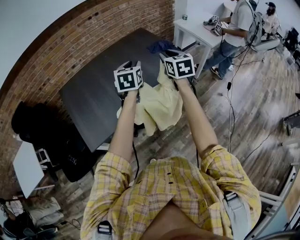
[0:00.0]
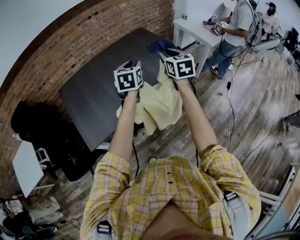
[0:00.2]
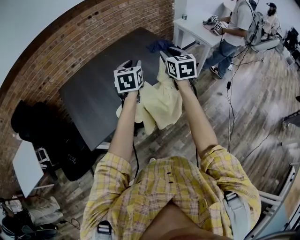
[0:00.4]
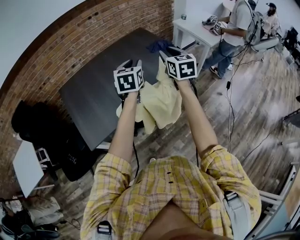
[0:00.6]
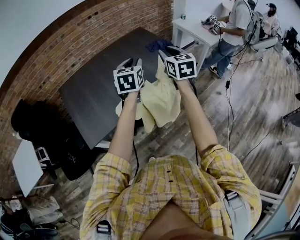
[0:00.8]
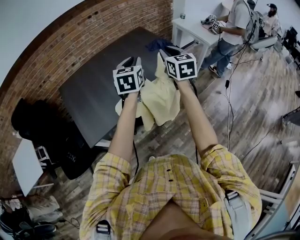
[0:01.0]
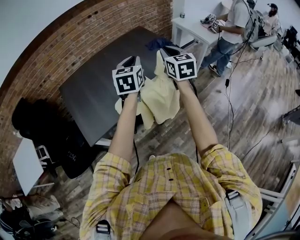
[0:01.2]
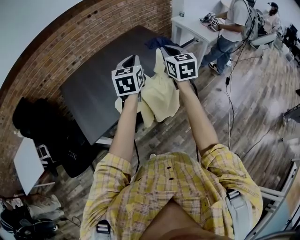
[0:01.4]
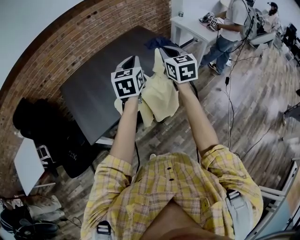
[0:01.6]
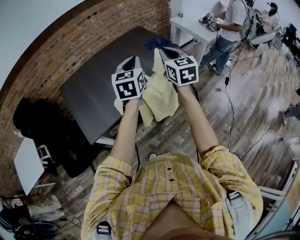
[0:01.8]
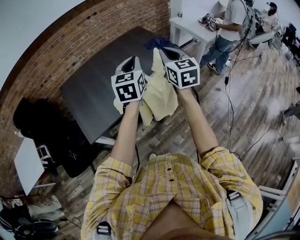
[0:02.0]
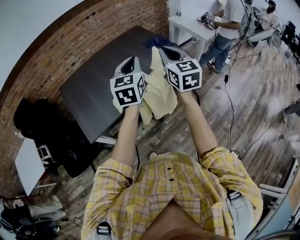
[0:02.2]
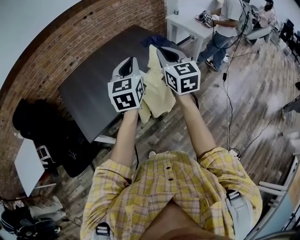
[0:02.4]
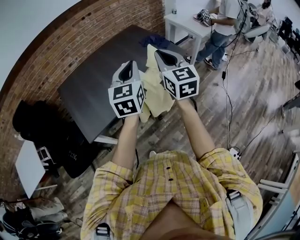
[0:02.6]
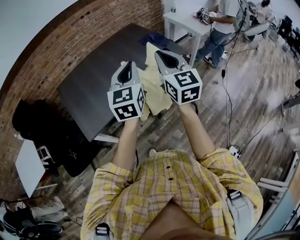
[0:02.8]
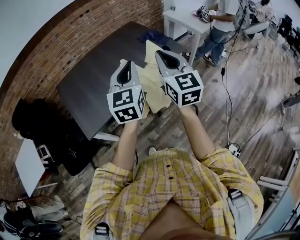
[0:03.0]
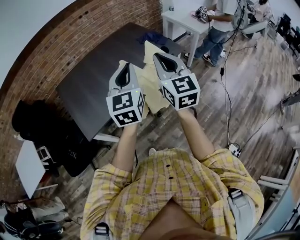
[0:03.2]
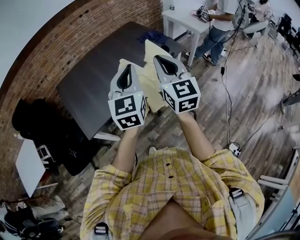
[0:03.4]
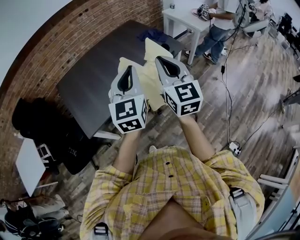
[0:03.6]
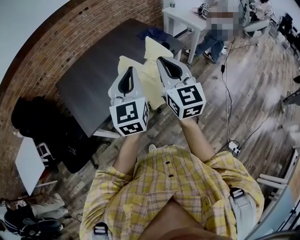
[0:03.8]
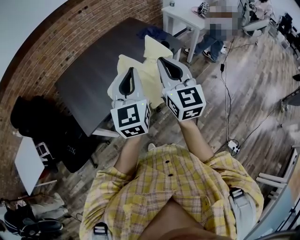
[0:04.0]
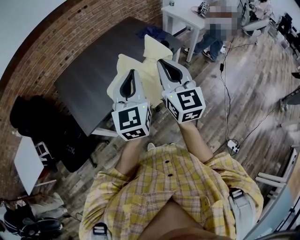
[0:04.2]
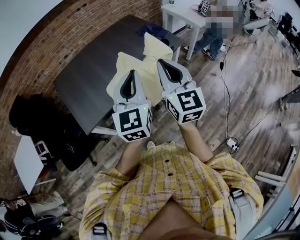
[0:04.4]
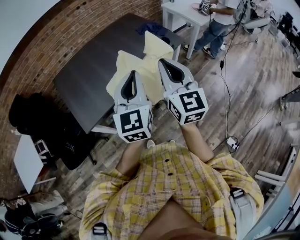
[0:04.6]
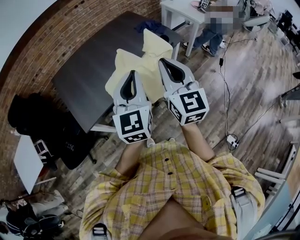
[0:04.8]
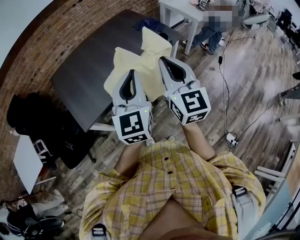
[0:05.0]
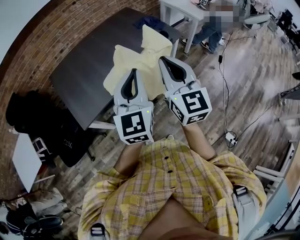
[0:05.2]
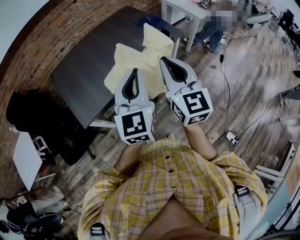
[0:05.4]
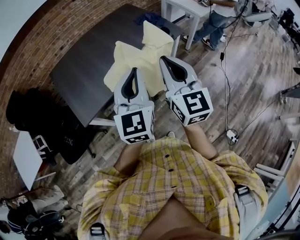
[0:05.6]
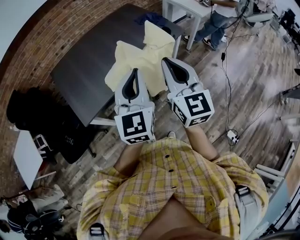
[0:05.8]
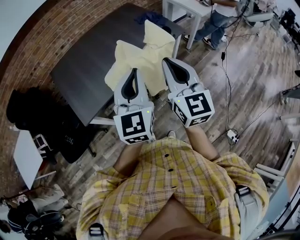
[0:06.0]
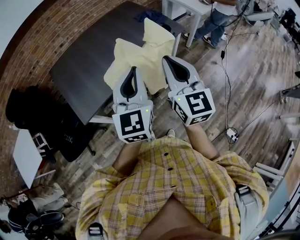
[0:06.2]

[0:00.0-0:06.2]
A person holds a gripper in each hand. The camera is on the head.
0.0 to 1.6 s: The left gripper travels backward and upward by approximately 10 cm, and closes its fingers; the right gripper moves backward, approximately 10 cm, and closes its fingers.
1.6 to 3.2 s: The two grippers go roughly 15 cm backward.
3.2 to 4.6 s: The grippers both shift backward by roughly 5 cm.
4.6 to 6.2 s: There are only small adjustments of the grippers.

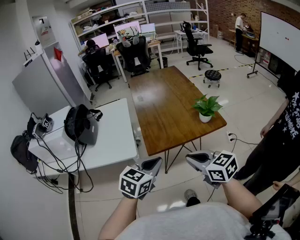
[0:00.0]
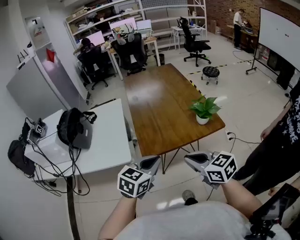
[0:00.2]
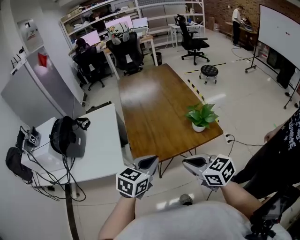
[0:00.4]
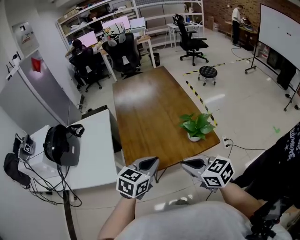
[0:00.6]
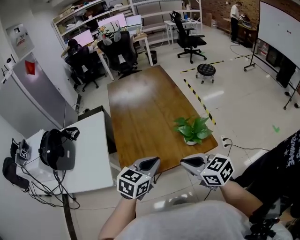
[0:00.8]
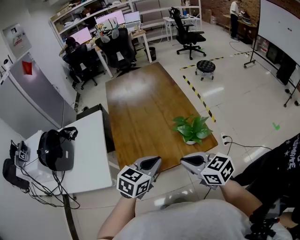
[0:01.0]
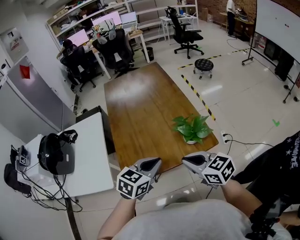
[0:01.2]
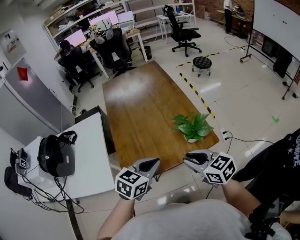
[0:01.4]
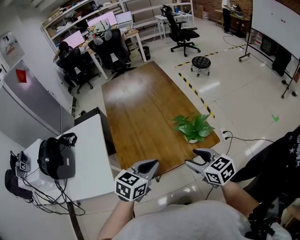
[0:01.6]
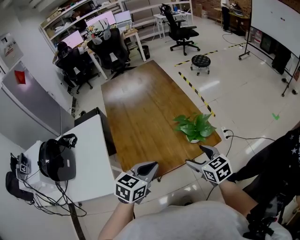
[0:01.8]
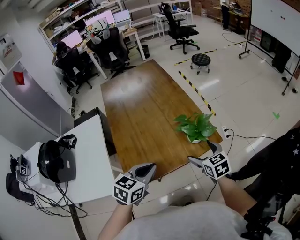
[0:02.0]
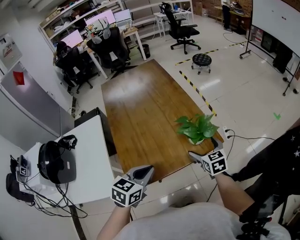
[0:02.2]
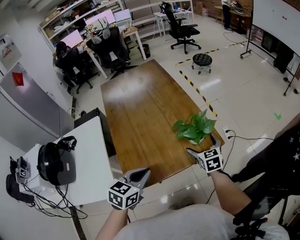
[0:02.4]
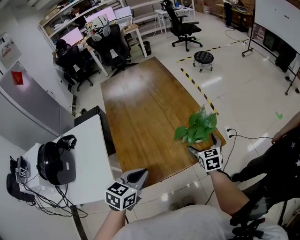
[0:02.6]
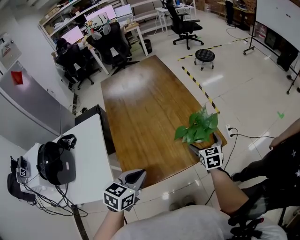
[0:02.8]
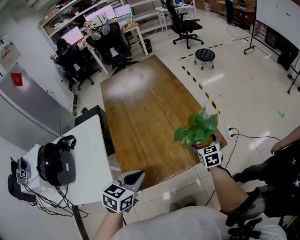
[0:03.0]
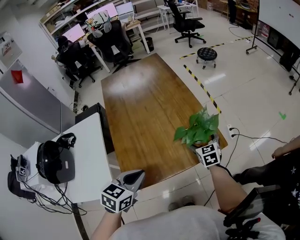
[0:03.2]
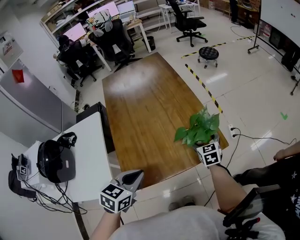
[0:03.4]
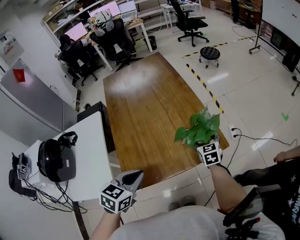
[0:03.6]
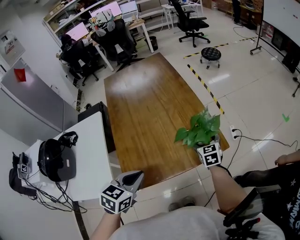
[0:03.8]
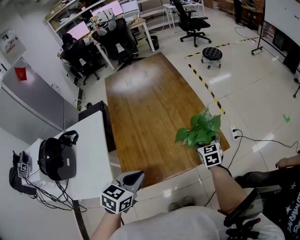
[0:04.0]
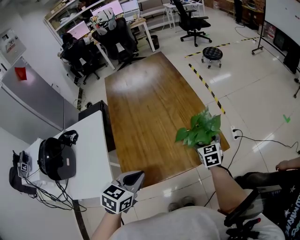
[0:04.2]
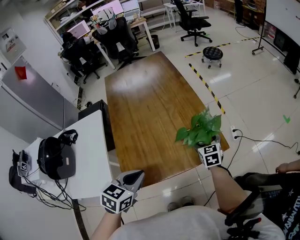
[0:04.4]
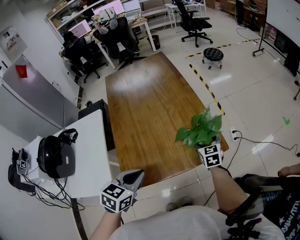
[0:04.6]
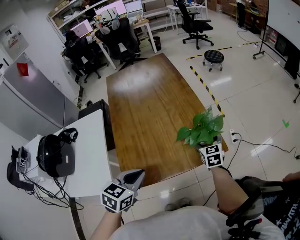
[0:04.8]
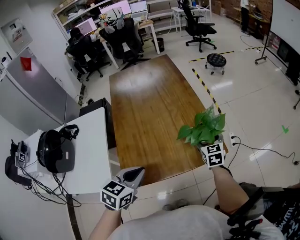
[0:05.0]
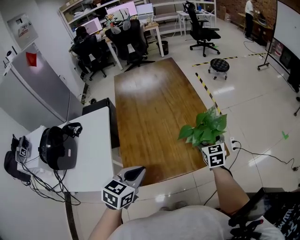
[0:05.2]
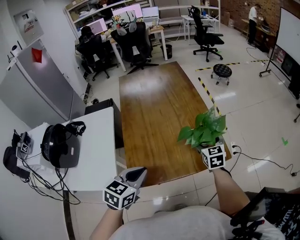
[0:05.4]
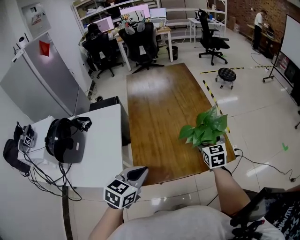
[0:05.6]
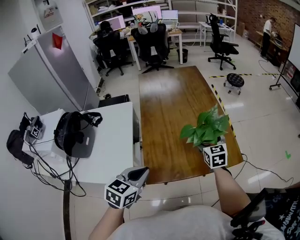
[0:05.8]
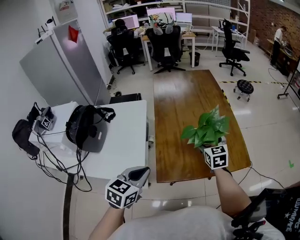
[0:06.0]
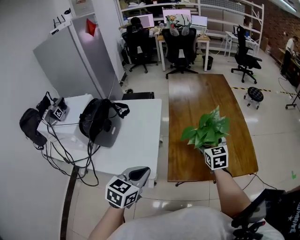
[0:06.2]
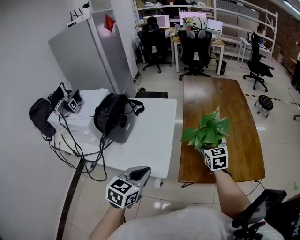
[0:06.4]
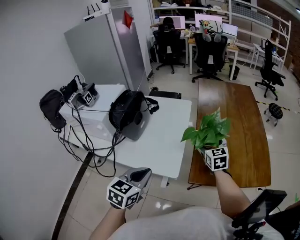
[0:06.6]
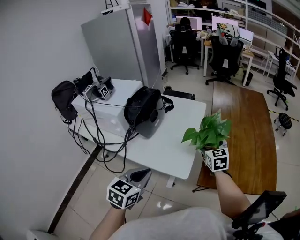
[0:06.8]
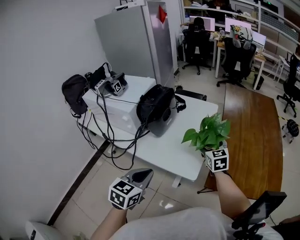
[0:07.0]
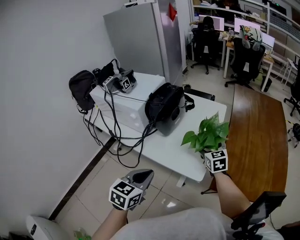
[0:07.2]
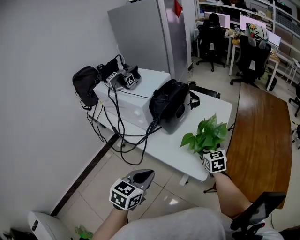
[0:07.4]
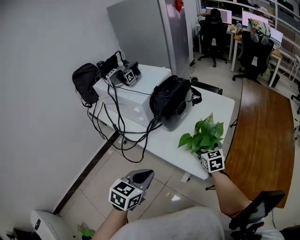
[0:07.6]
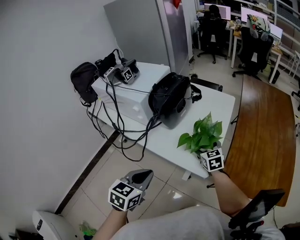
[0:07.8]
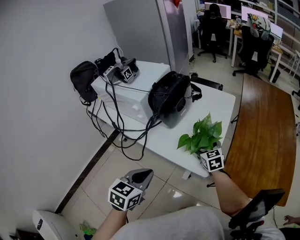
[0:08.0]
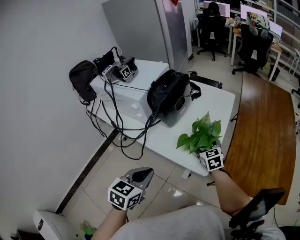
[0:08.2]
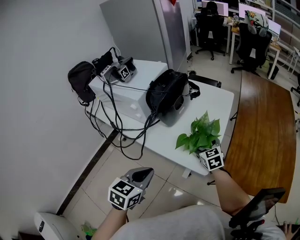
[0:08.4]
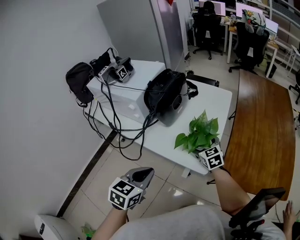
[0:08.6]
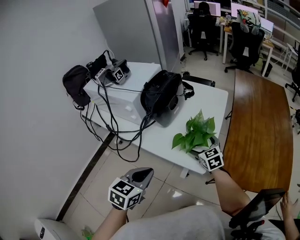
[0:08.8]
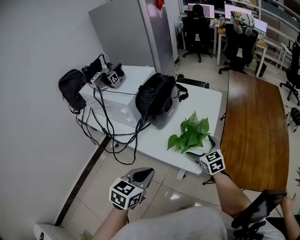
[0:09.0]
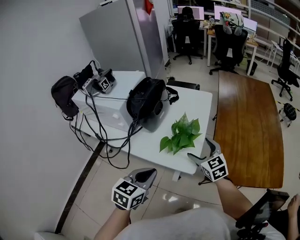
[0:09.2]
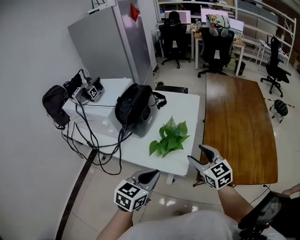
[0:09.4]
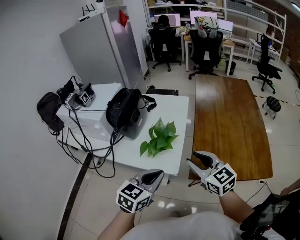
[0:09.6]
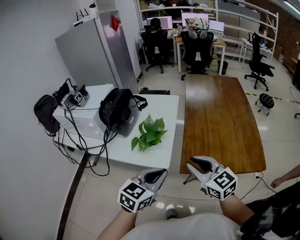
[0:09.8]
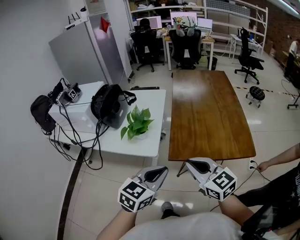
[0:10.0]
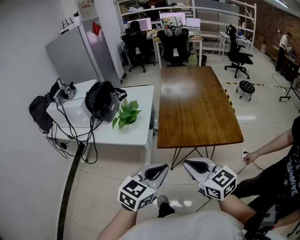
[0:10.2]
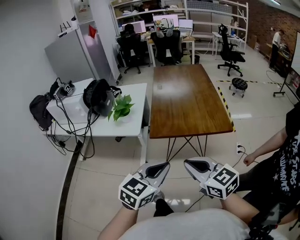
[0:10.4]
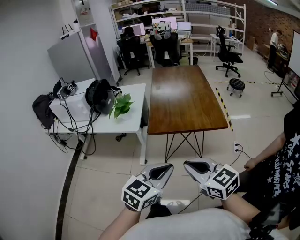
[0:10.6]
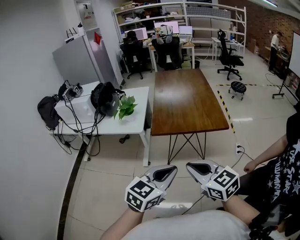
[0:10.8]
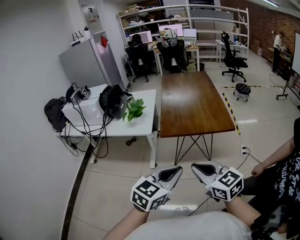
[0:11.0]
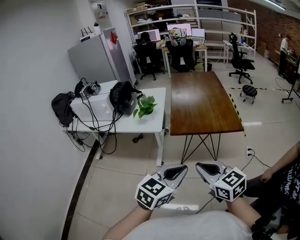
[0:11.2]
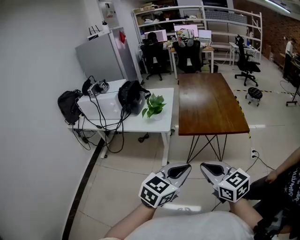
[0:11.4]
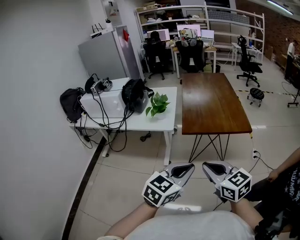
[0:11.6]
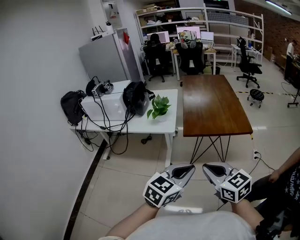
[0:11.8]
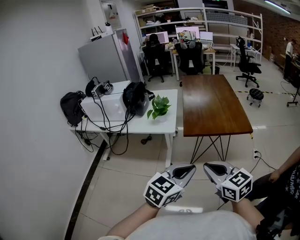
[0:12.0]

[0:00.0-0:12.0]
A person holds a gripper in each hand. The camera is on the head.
0.0 to 1.6 s: Both grippers move forward and to the right, some 25 cm. The right gripper opens up.
1.6 to 3.0 s: The right gripper is displaced forward and downward by about 20 cm, turns by approximately 30 degrees, and opens up; the left gripper travels to the left by approximately 5 cm.
3.0 to 4.4 s: The grippers make only small movements.
4.4 to 6.0 s: The right gripper shifts about 25 cm to the left and upward. The left gripper shifts approximately 15 cm to the left and backward.
6.0 to 7.6 s: The left gripper ends up some 30 cm from where it was, and turns by roughly 30 degrees. The right gripper ends up roughly 40 cm from where it was, and turns by some 40 degrees.
7.6 to 9.0 s: The grippers make only small movements.
9.0 to 10.4 s: The pair of grippers is taken backward and to the right, approximately 50 cm. The left gripper changes its angle by approximately 30 degrees, while the right gripper heads upward, covering approximately 20 cm, and closes.
10.4 to 12.0 s: Both grippers travel together backward and to the left, approximately 15 cm.

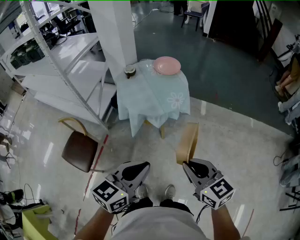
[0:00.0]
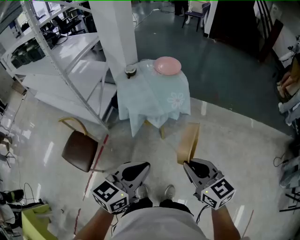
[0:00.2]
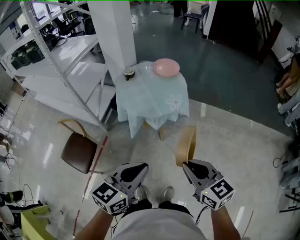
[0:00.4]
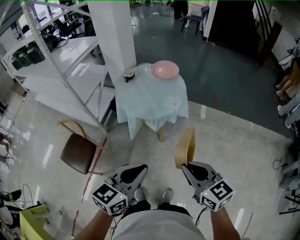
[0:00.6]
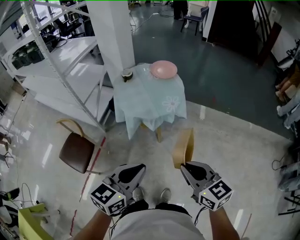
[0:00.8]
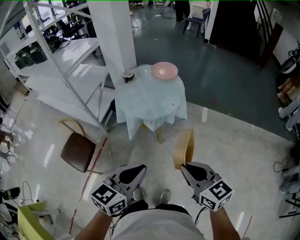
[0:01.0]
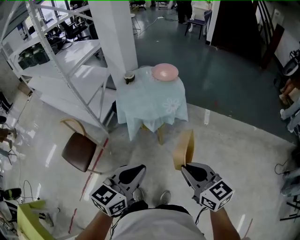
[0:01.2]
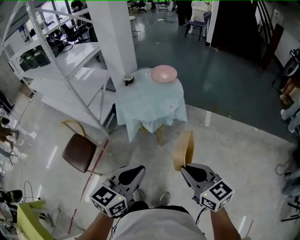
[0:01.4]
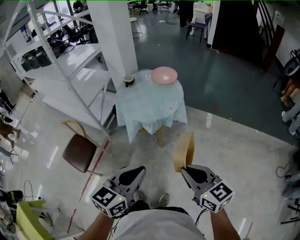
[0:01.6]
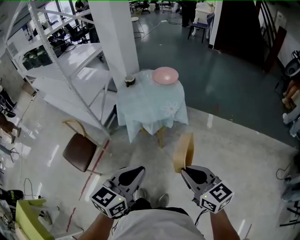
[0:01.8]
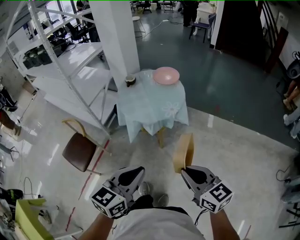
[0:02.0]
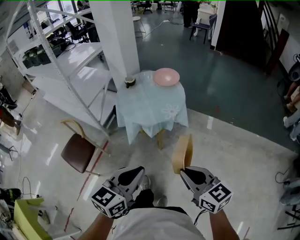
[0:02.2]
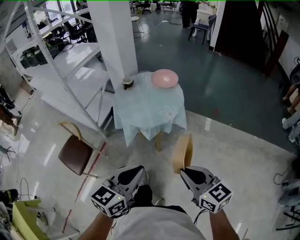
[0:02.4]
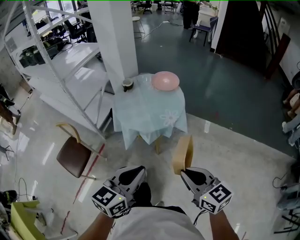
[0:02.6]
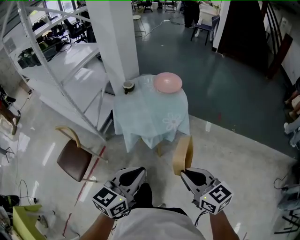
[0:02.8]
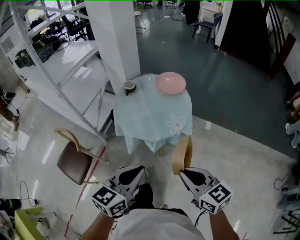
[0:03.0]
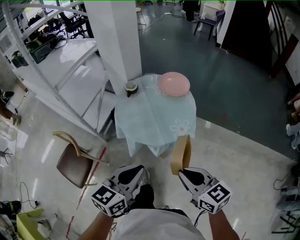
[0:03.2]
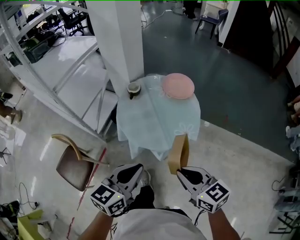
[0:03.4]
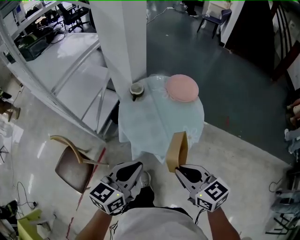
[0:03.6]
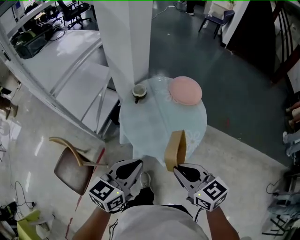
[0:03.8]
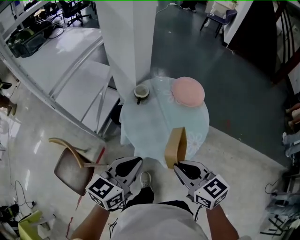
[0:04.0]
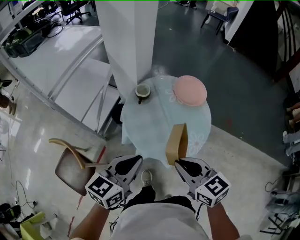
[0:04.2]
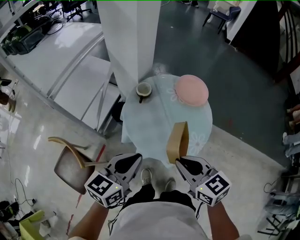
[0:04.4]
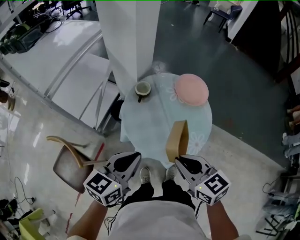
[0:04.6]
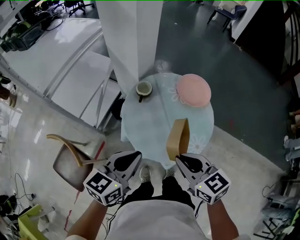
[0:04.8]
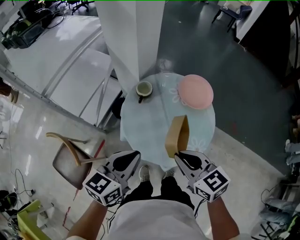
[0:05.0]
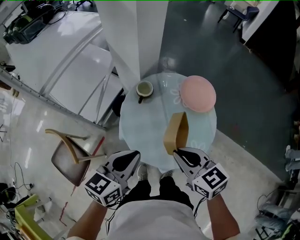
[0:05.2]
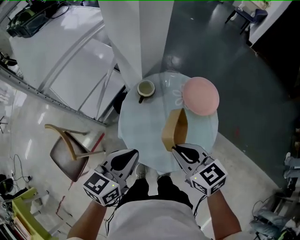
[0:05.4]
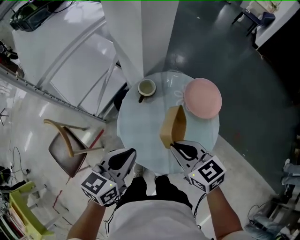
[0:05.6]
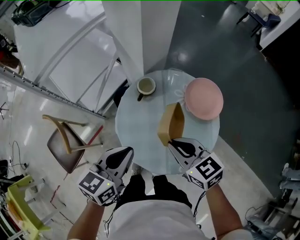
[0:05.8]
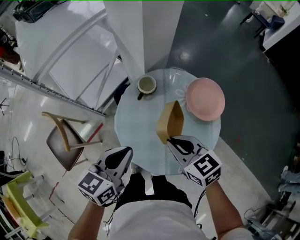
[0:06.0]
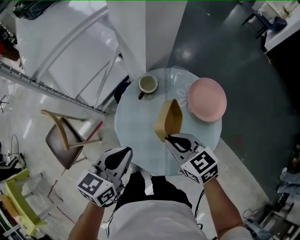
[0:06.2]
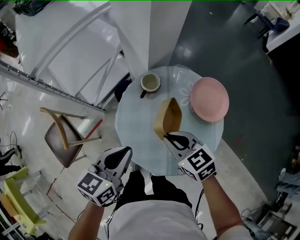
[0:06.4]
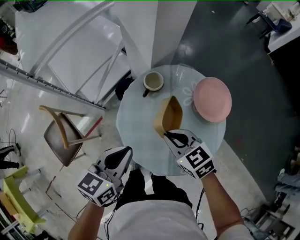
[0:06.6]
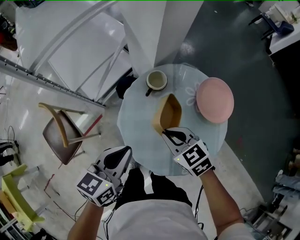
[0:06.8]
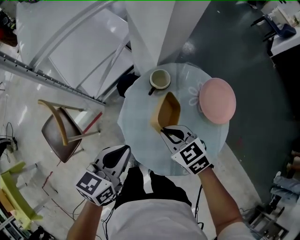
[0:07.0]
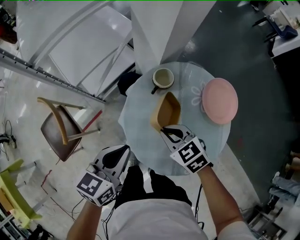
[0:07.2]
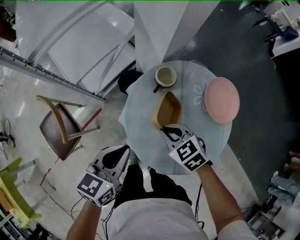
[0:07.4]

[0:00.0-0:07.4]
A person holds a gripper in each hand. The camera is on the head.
0.0 to 1.4 s: The grippers both shift to the right by about 10 cm.
1.4 to 3.0 s: The two grippers go about 20 cm forward.
3.0 to 4.4 s: The two grippers go roughly 30 cm forward and to the left.
4.4 to 6.0 s: The left gripper is displaced forward, downward and to the right by approximately 15 cm, and changes its angle by roughly 20 degrees; the right gripper travels forward and downward by about 20 cm, and swivels about 20 degrees.
6.0 to 7.4 s: The left gripper goes some 10 cm to the left and downward; the right gripper goes about 15 cm downward, to the left and forward, and swivels about 20 degrees.
